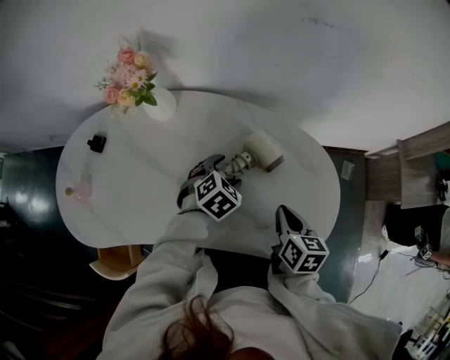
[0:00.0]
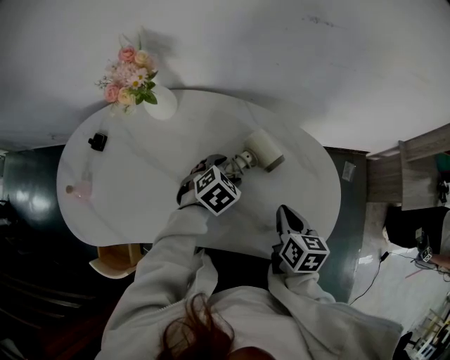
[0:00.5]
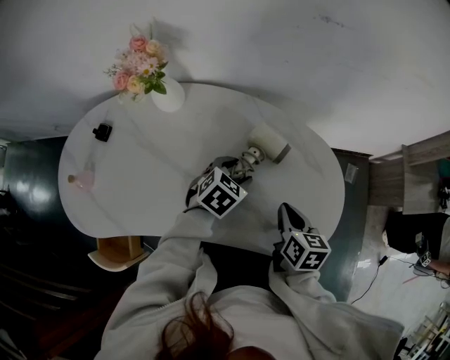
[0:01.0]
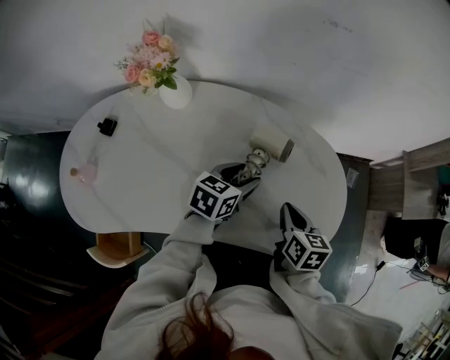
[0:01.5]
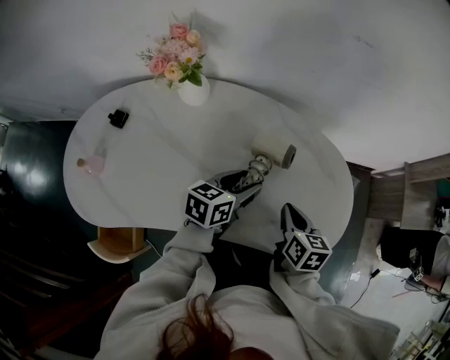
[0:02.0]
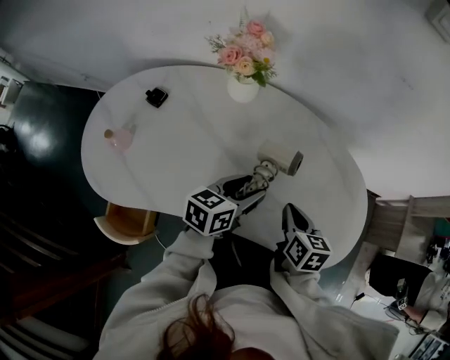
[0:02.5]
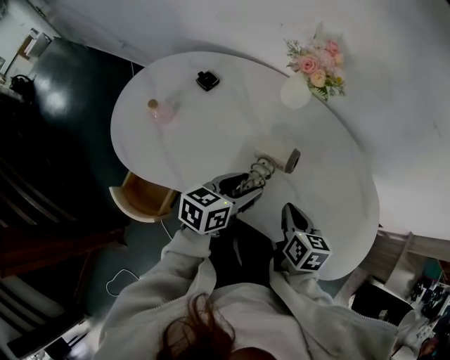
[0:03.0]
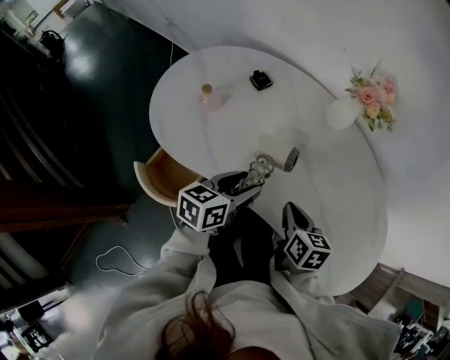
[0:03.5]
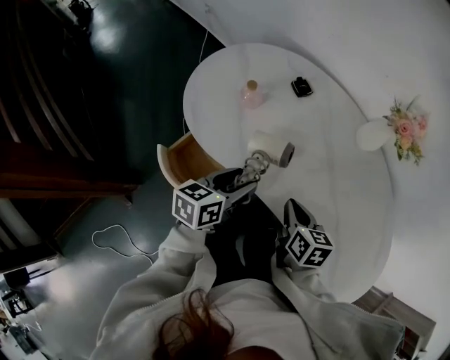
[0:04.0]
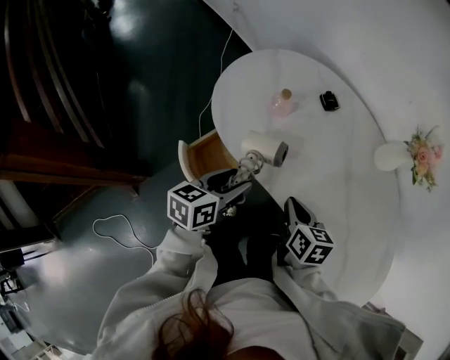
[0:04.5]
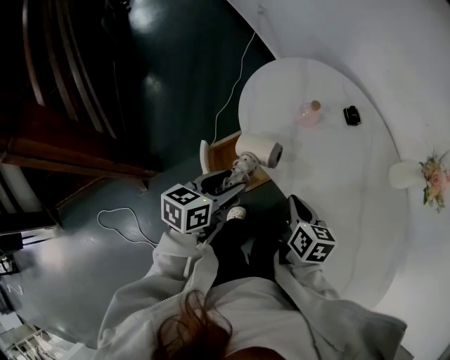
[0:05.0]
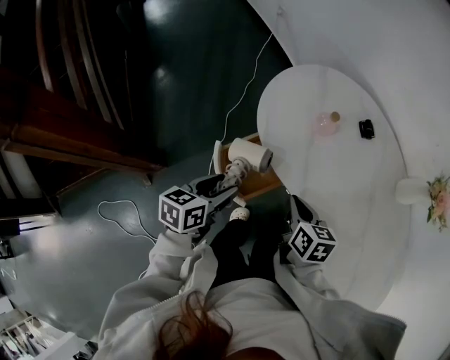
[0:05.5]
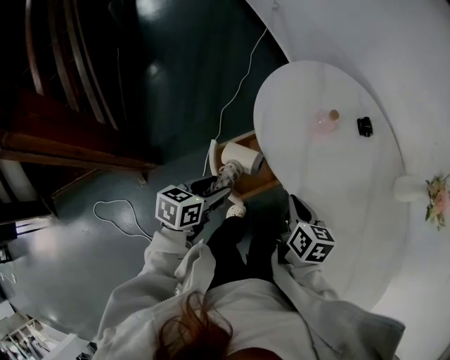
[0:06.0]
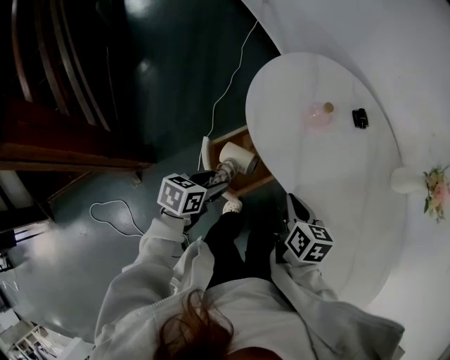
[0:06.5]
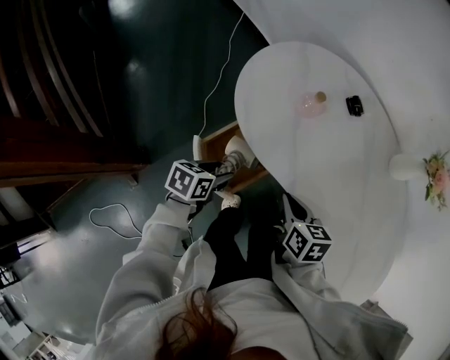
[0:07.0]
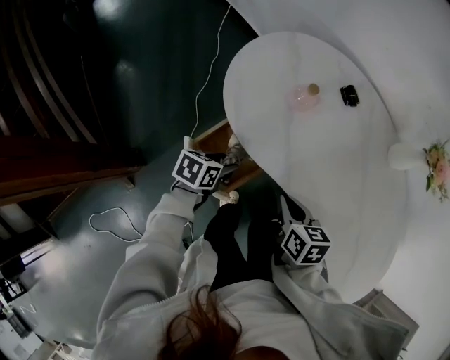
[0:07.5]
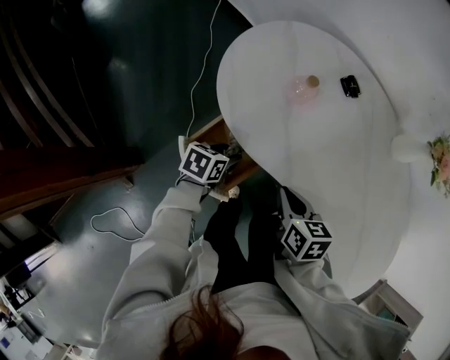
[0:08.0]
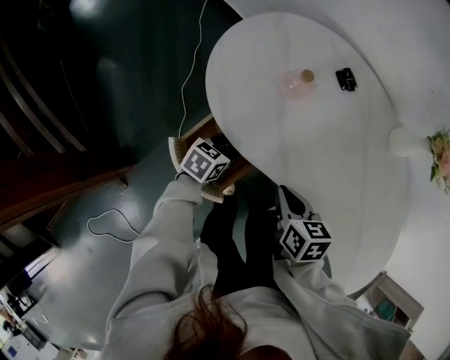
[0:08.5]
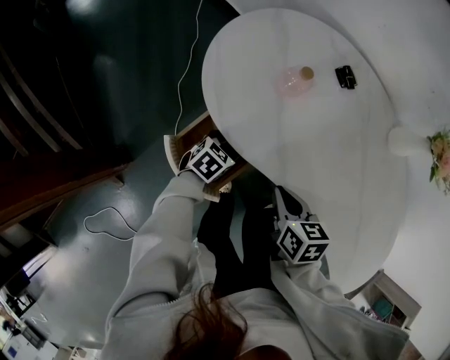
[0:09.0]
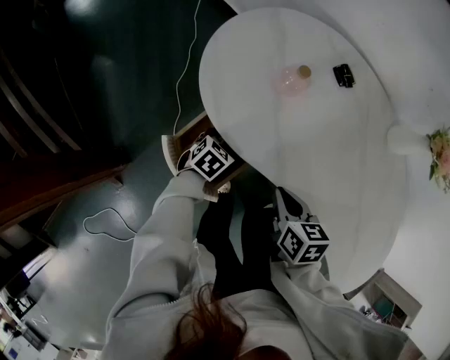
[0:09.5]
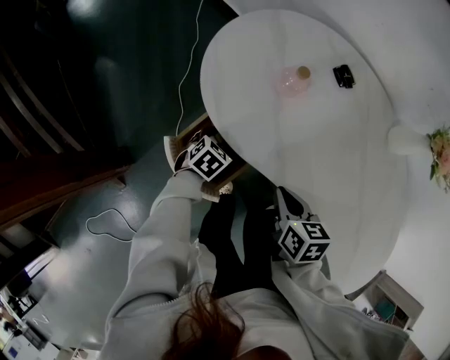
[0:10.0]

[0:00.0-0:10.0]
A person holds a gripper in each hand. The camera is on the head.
0:00.0 to 0:02.0: The left gripper moves upward, some 5 cm, and angles its fingers upward, by about 30 degrees.
0:02.0 to 0:04.0: The right gripper changes place by roughly 35 cm, and rotates approximately 50 degrees, while the left gripper changes place by roughly 40 cm, and swivels some 50 degrees.
0:04.0 to 0:06.0: Both grippers travel together to the left, roughly 20 cm.
0:06.0 to 0:08.0: The left gripper heads forward, downward and to the right, covering roughly 15 cm, and turns by some 30 degrees.
0:08.0 to 0:10.0: The left gripper moves downward, about 5 cm, and changes its angle by about 30 degrees.

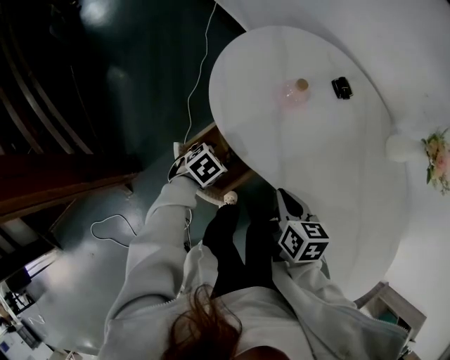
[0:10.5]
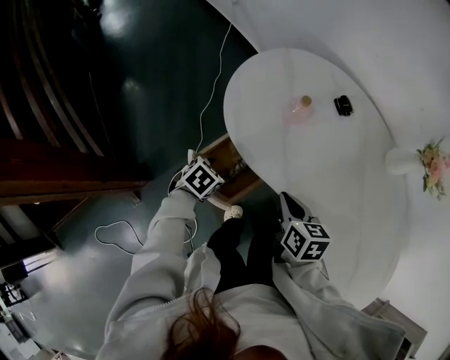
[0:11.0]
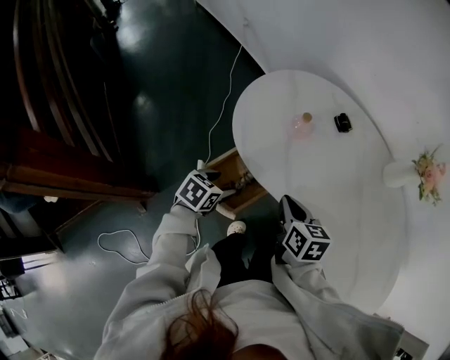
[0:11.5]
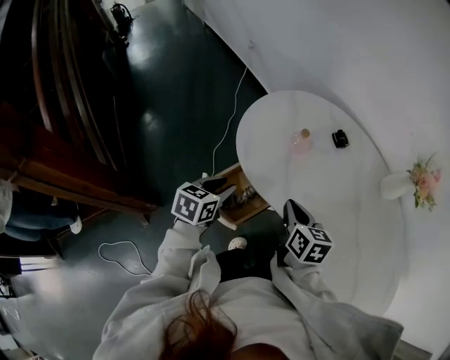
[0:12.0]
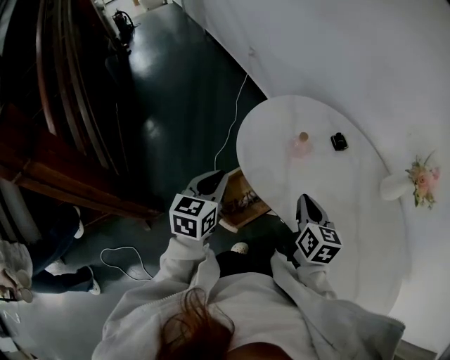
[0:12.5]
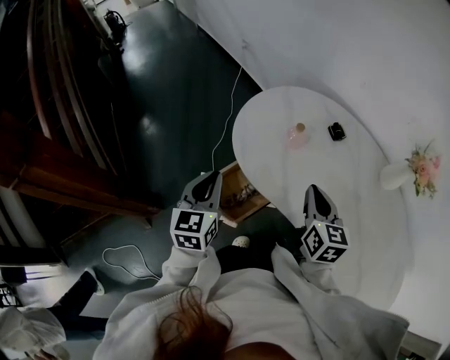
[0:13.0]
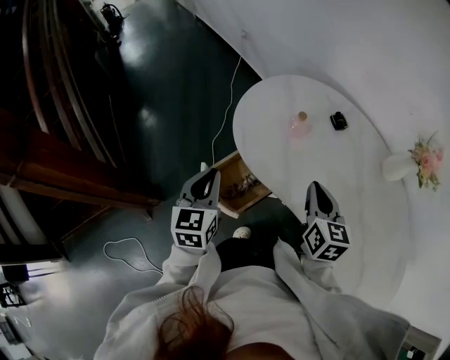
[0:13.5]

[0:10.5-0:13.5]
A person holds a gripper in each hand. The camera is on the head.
0:10.5 to 0:12.0: The left gripper goes approximately 20 cm upward, changes its angle by about 40 degrees, and closes up. The right gripper moves upward, roughly 5 cm.
0:12.0 to 0:13.5: The right gripper shifts roughly 10 cm upward and to the right; the left gripper is displaced upward by roughly 10 cm, turns by roughly 30 degrees, and closes up.

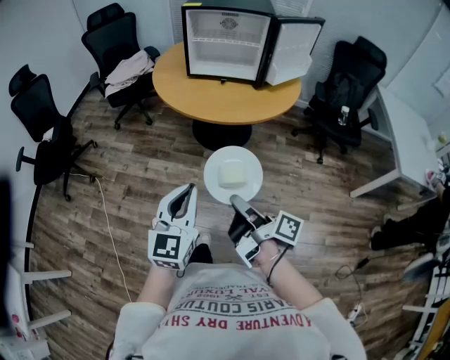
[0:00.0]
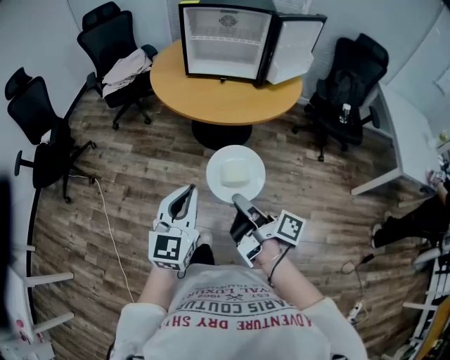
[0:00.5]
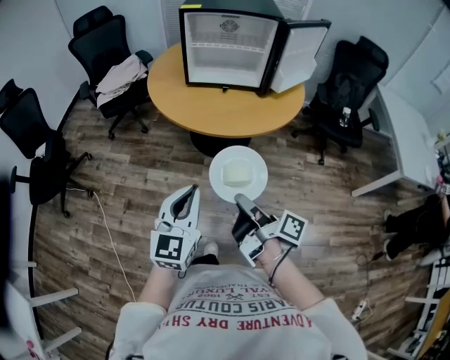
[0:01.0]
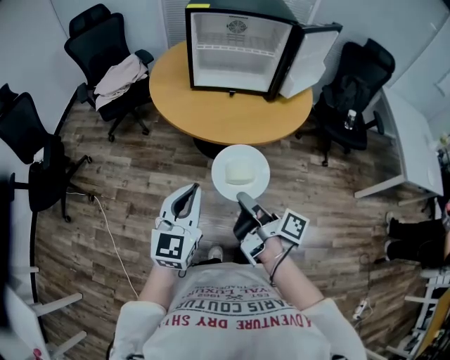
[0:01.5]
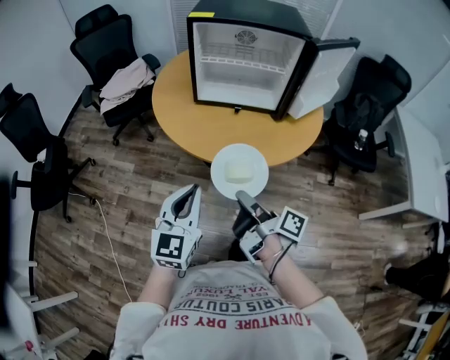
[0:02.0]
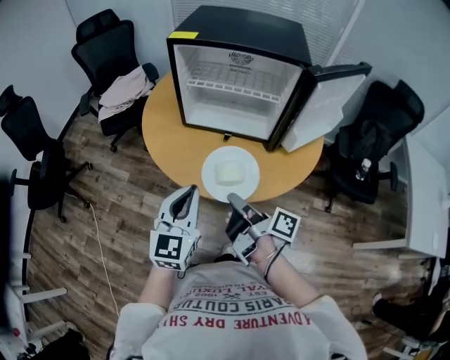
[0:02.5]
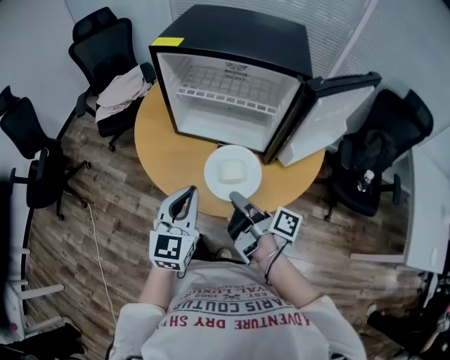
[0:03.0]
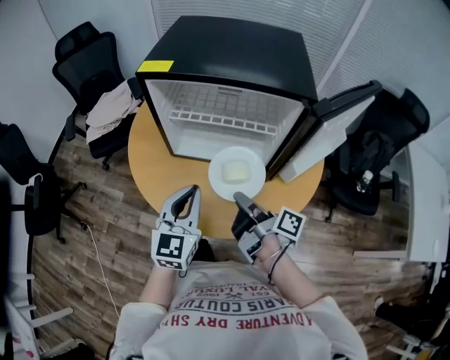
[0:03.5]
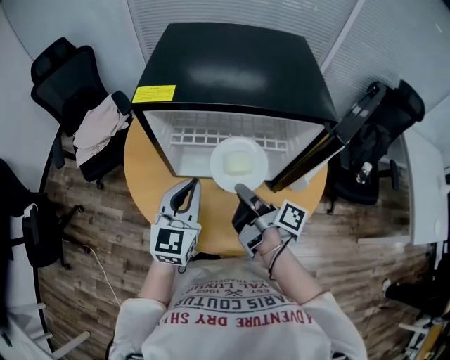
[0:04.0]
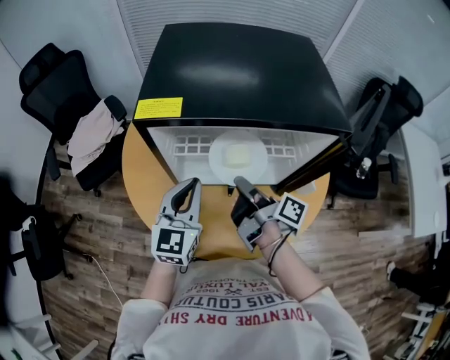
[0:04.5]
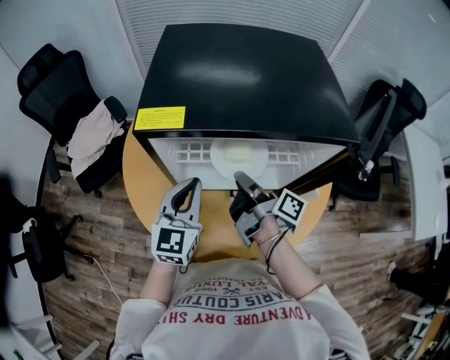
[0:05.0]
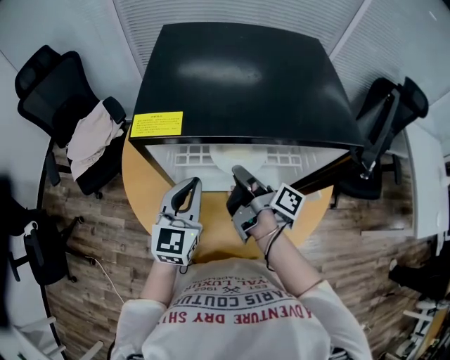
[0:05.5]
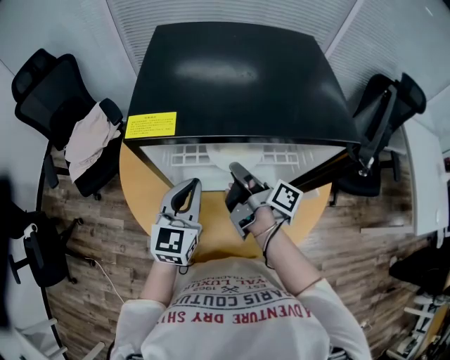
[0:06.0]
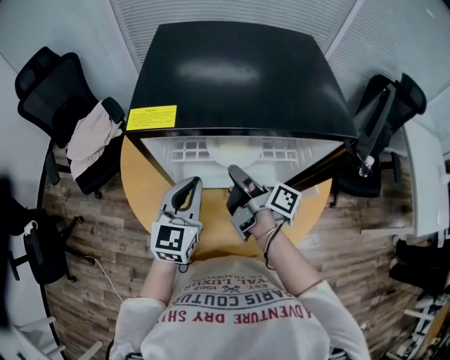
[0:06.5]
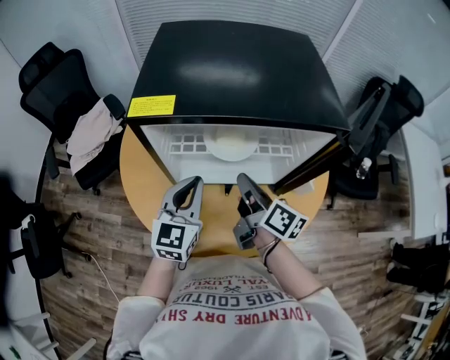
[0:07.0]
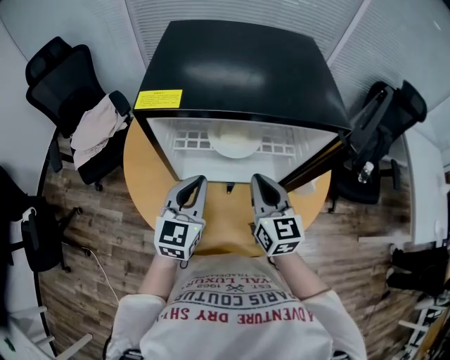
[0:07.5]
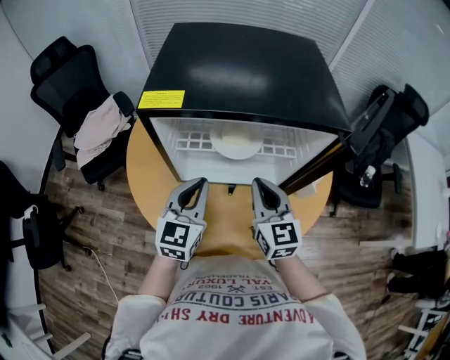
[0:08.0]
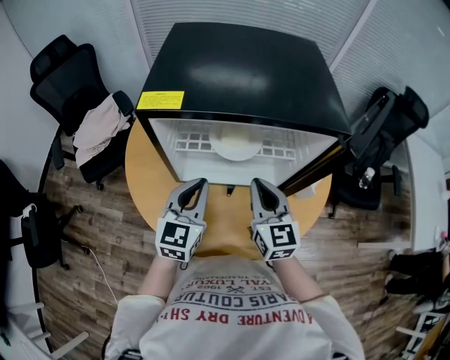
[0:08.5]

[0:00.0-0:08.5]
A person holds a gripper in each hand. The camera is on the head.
0:00.0 to 0:02.0: The left gripper shifts by roughly 25 cm.
0:02.0 to 0:04.0: The left gripper moves approximately 40 cm.
0:04.0 to 0:06.5: The left gripper moves approximately 5 cm.

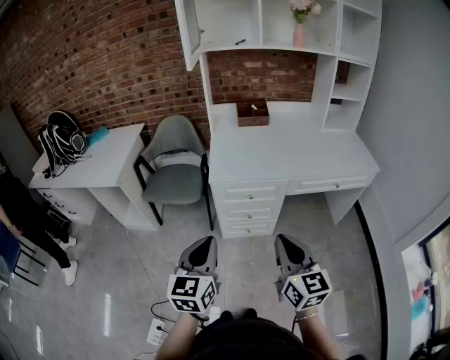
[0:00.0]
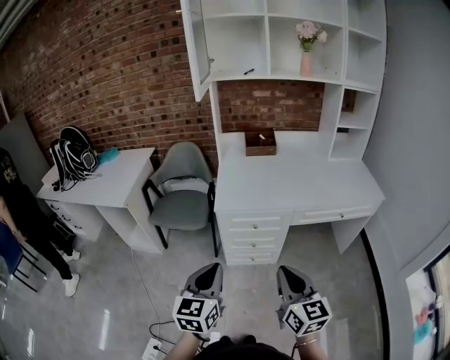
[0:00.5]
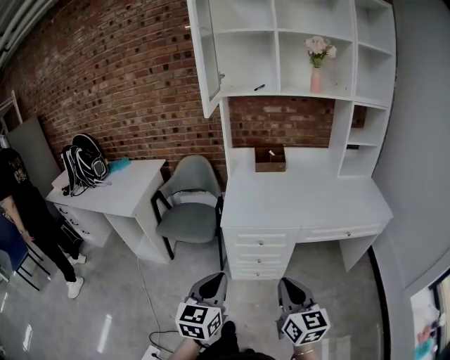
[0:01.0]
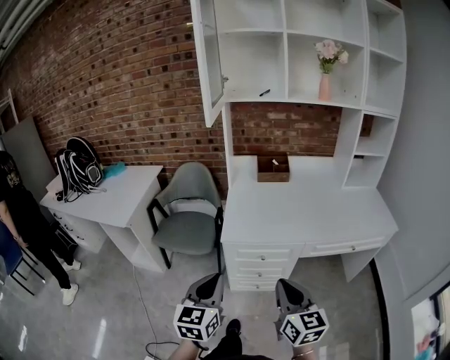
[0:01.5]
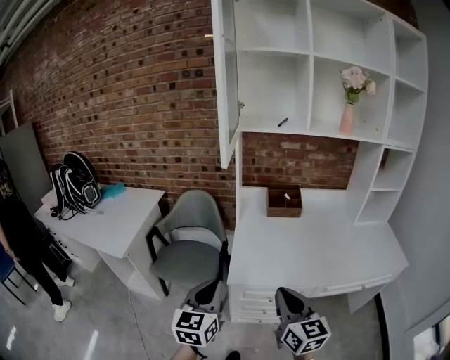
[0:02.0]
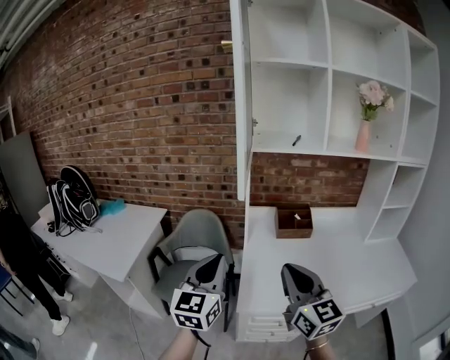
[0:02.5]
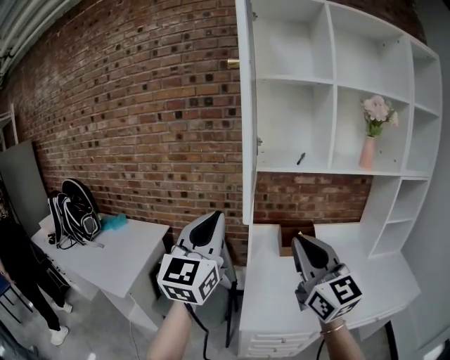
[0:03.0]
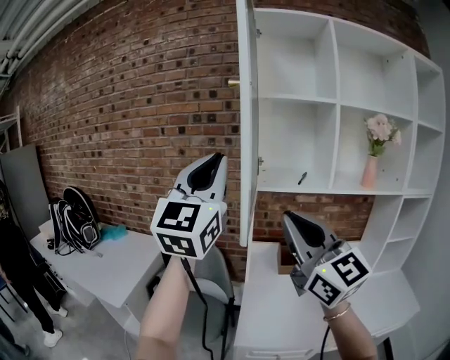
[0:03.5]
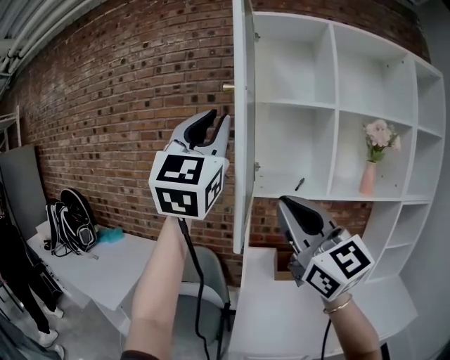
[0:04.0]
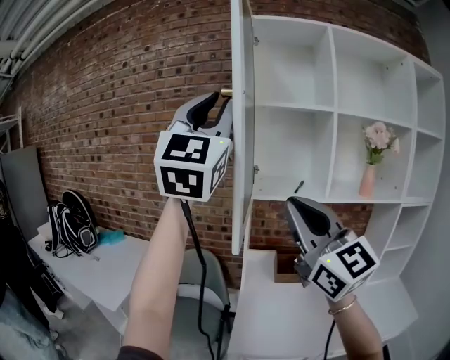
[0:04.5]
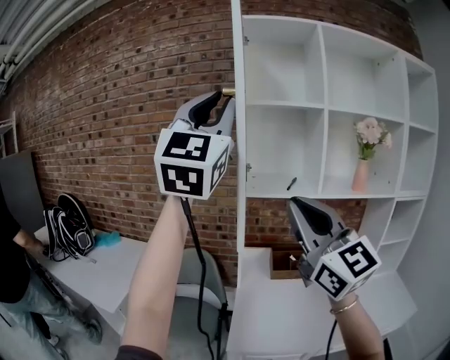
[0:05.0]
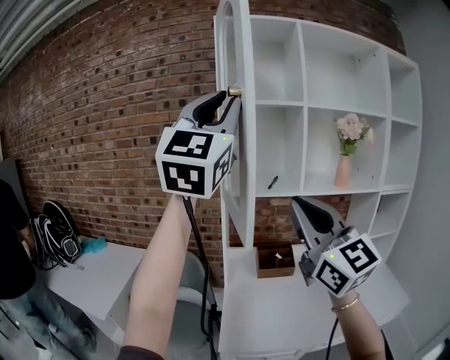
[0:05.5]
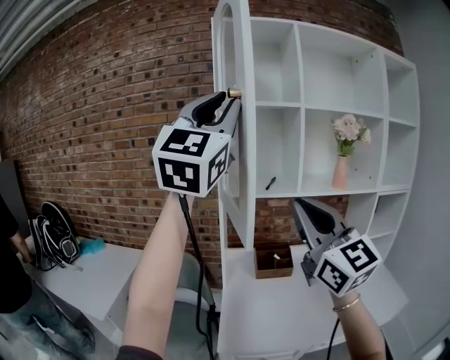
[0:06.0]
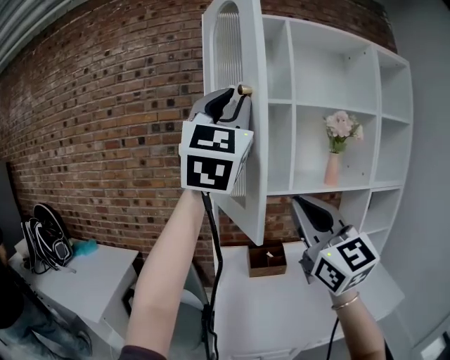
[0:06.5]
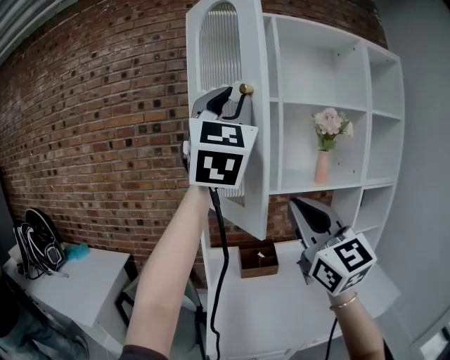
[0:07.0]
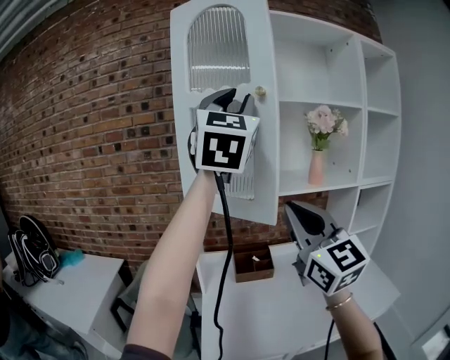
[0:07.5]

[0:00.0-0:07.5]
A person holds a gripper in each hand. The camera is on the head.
0:00.0 to 0:02.0: Both grippers travel together forward, roughly 25 cm.
0:02.0 to 0:04.0: Both grippers move upward and forward, about 50 cm. The left gripper angles its fingers upward, by roughly 40 degrees; the right gripper rotates about 40 degrees.
0:04.0 to 0:05.5: Both grippers travel together to the right, approximately 10 cm.
0:05.5 to 0:07.5: The left gripper moves to the right and forward, about 15 cm. Meanwhile the right gripper travels to the right and forward by roughly 10 cm.
